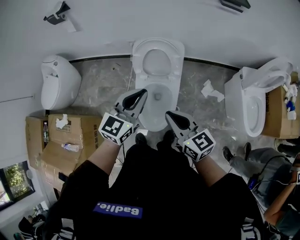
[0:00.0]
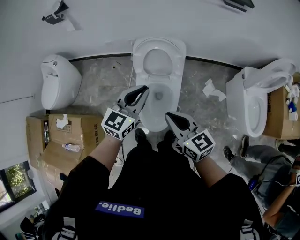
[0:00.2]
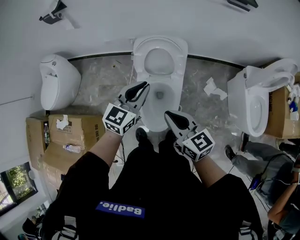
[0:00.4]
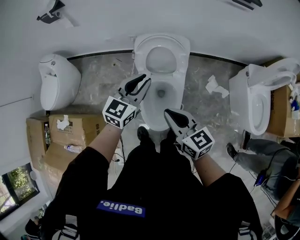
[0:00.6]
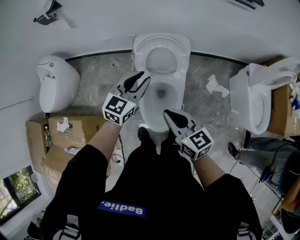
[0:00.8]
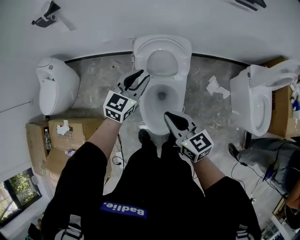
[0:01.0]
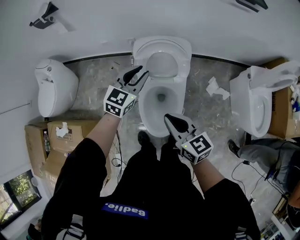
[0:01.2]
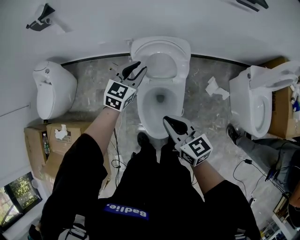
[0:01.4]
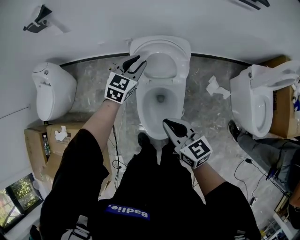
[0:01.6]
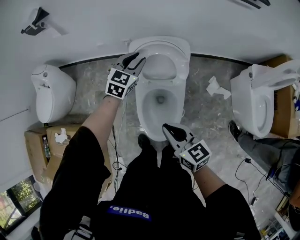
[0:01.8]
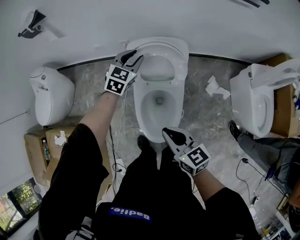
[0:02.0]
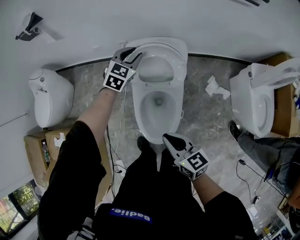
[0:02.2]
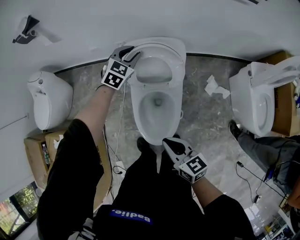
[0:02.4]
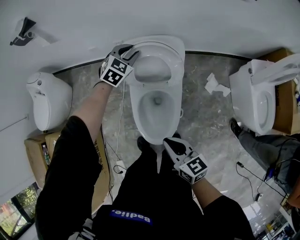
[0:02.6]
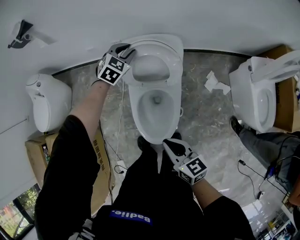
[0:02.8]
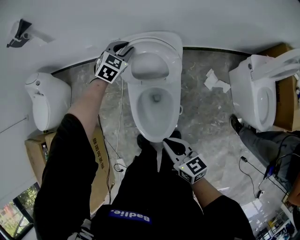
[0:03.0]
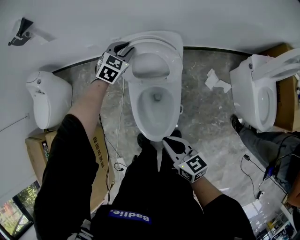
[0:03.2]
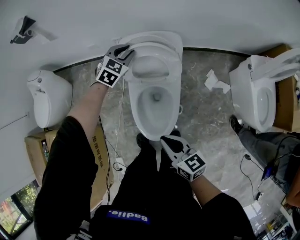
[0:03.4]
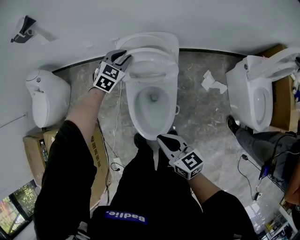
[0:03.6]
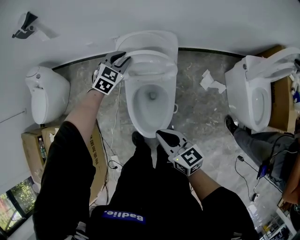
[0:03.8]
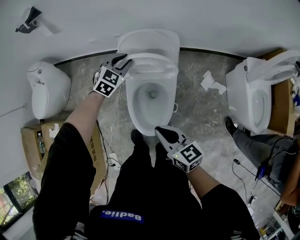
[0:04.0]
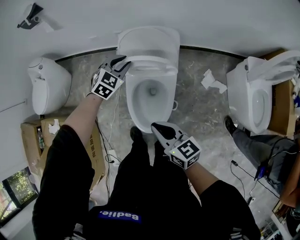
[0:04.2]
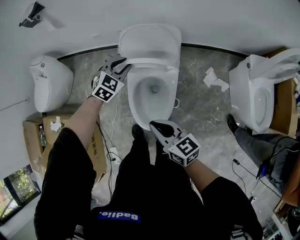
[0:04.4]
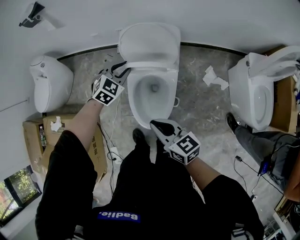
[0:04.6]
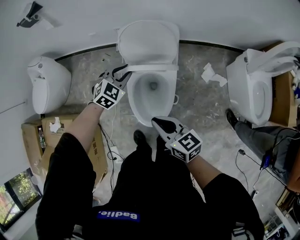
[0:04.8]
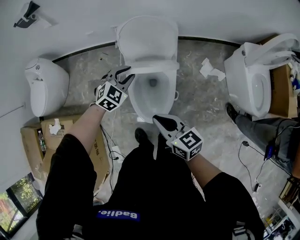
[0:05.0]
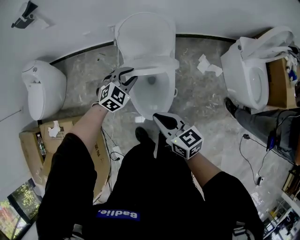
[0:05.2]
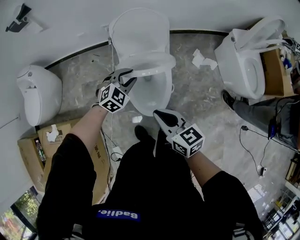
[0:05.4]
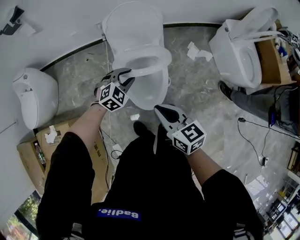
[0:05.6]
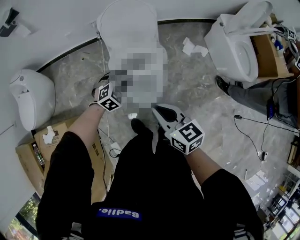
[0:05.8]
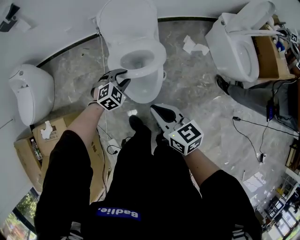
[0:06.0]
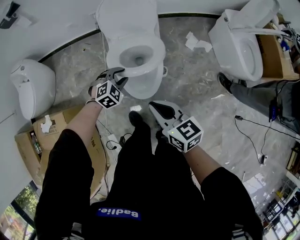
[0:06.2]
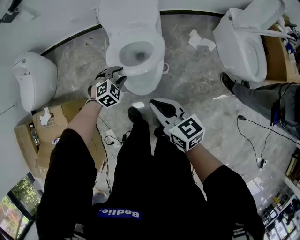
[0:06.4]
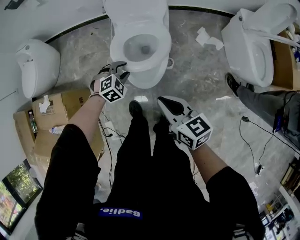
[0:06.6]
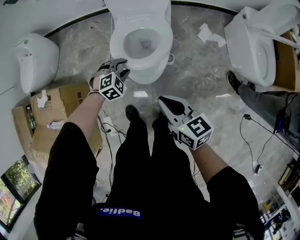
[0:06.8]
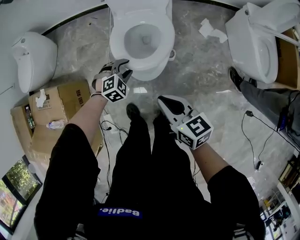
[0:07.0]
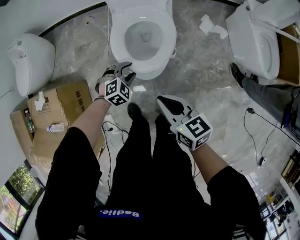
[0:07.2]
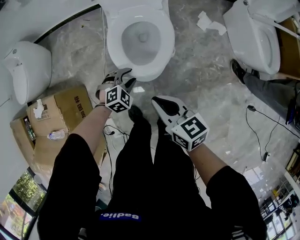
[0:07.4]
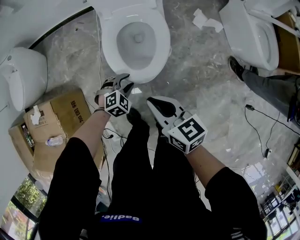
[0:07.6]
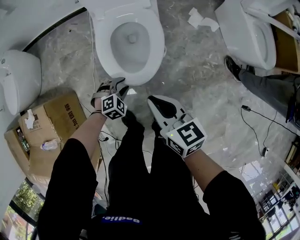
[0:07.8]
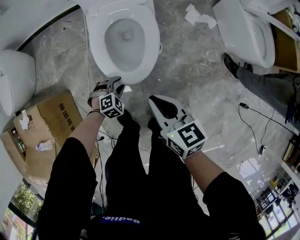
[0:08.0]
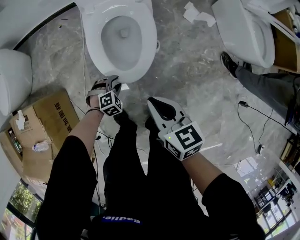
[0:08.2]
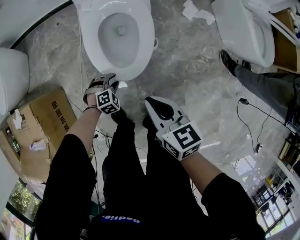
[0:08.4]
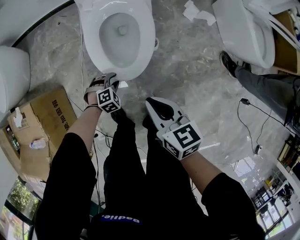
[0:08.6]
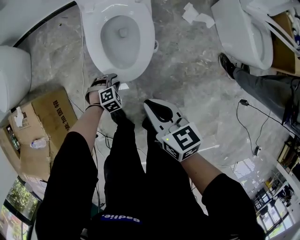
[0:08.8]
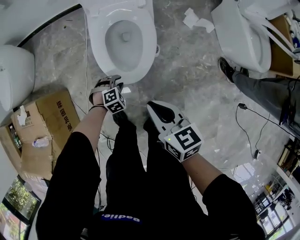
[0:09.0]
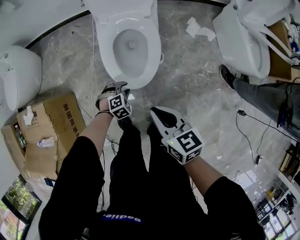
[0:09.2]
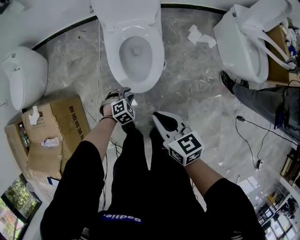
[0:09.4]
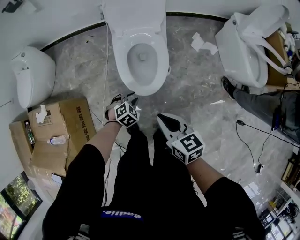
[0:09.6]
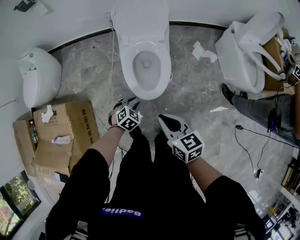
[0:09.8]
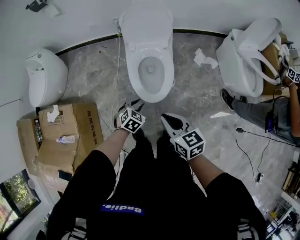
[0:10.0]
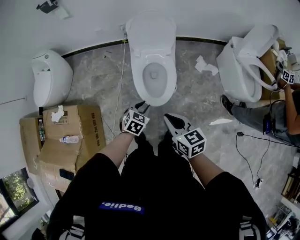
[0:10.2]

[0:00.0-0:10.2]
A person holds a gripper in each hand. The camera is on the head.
0:00.0 to 0:01.4: The right gripper moves forward, downward and to the left, about 10 cm; the left gripper moves forward and downward, about 25 cm.
0:01.4 to 0:03.0: The right gripper goes approximately 10 cm downward and backward, while the left gripper goes approximately 15 cm forward and downward, and rotates about 20 degrees.
0:03.0 to 0:04.4: The left gripper is displaced backward by approximately 15 cm.
0:04.4 to 0:05.8: The right gripper is displaced backward by roughly 10 cm, and swivels some 20 degrees; the left gripper travels backward and downward by roughly 20 cm, and changes its angle by about 20 degrees.
0:05.8 to 0:07.2: The two grippers go roughly 15 cm downward and backward.
0:07.2 to 0:08.8: The left gripper goes about 20 cm downward; the right gripper travels downward by roughly 5 cm.
0:08.8 to 0:10.2: The left gripper travels upward by about 35 cm, and rotates around the line of its fingers by about 40 degrees, counterclockwise from behind. The right gripper travels upward by approximately 20 cm.

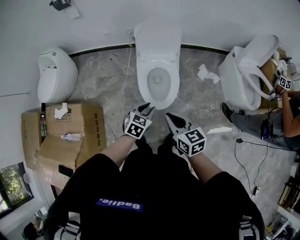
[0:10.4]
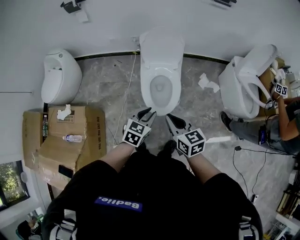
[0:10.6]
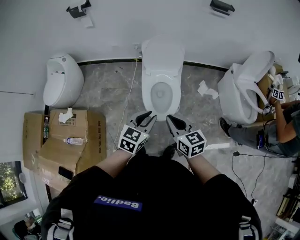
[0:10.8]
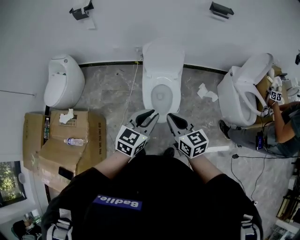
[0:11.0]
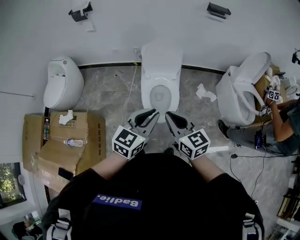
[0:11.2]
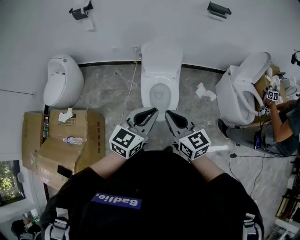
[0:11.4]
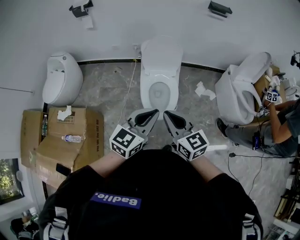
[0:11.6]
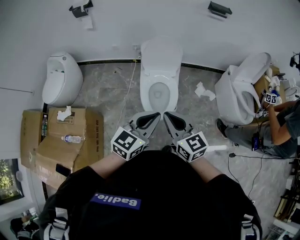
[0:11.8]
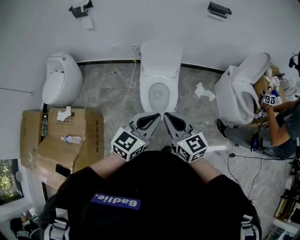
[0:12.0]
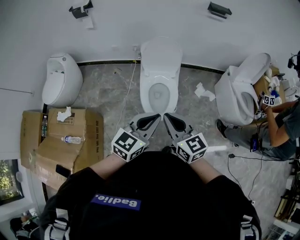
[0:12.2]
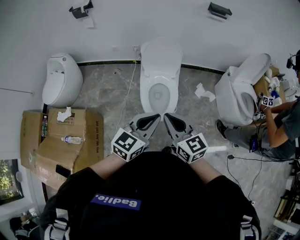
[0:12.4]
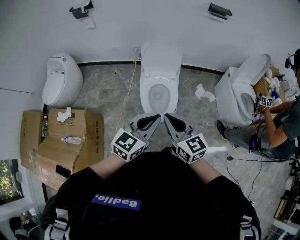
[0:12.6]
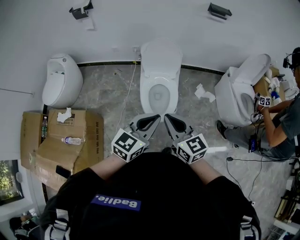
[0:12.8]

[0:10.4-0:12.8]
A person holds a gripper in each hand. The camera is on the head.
0:10.4 to 0:11.6: The left gripper is displaced upward by some 25 cm, angles its fingers upward, by some 30 degrees, and closes its fingers, while the right gripper is displaced upward by about 15 cm.
0:11.6 to 0:12.8: The grippers make only small movements.

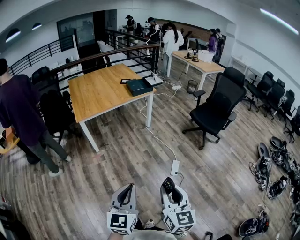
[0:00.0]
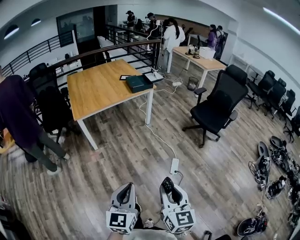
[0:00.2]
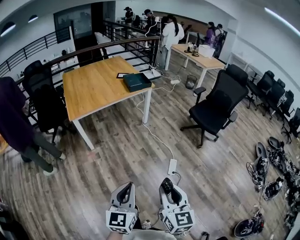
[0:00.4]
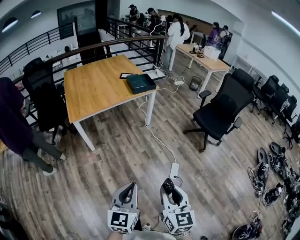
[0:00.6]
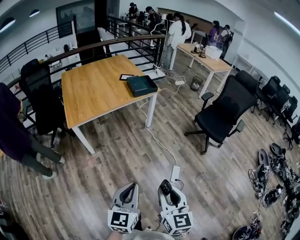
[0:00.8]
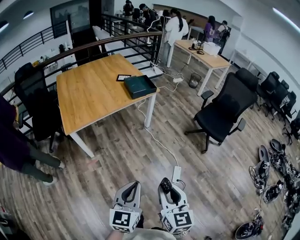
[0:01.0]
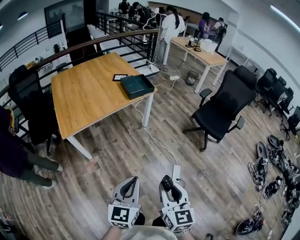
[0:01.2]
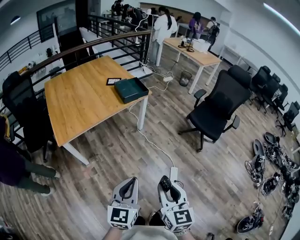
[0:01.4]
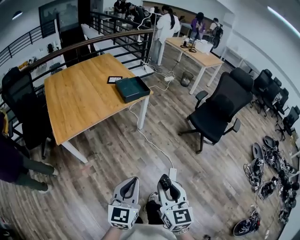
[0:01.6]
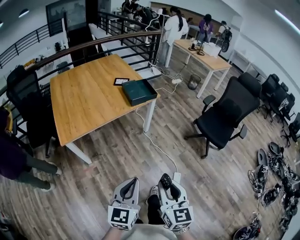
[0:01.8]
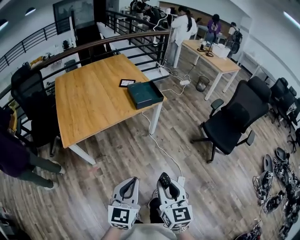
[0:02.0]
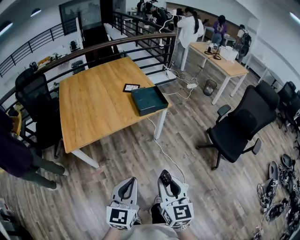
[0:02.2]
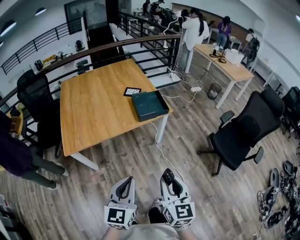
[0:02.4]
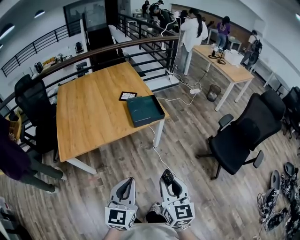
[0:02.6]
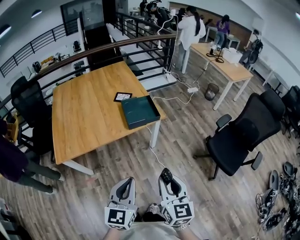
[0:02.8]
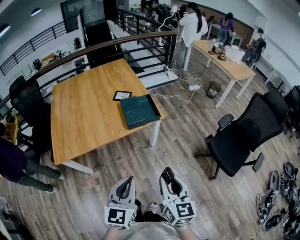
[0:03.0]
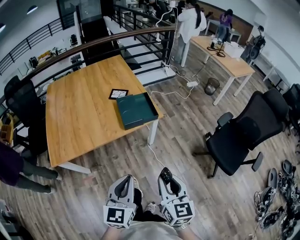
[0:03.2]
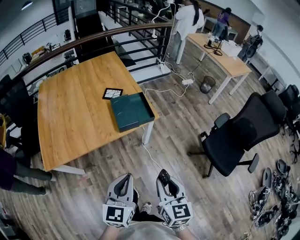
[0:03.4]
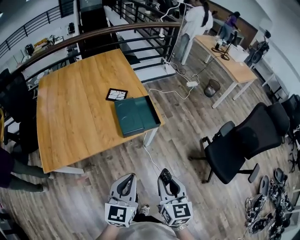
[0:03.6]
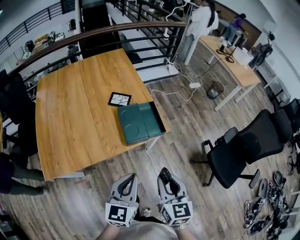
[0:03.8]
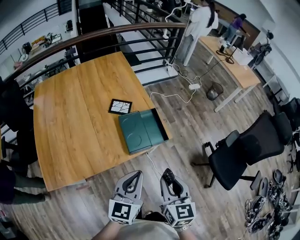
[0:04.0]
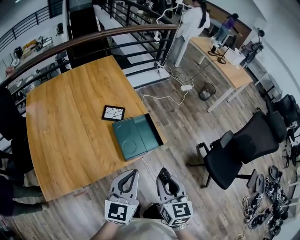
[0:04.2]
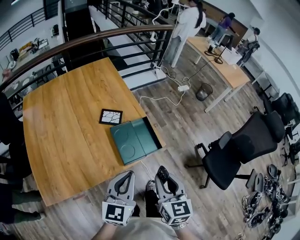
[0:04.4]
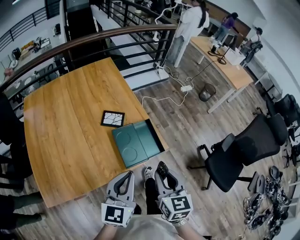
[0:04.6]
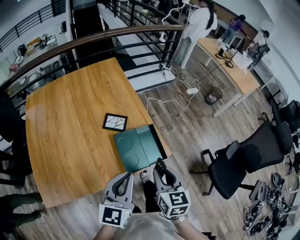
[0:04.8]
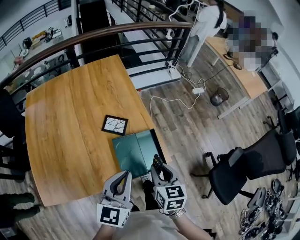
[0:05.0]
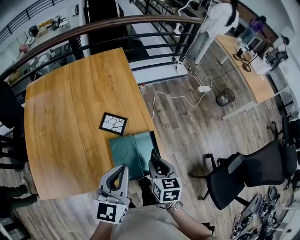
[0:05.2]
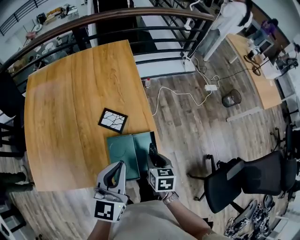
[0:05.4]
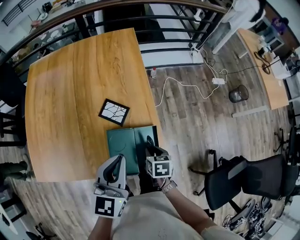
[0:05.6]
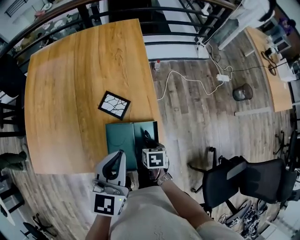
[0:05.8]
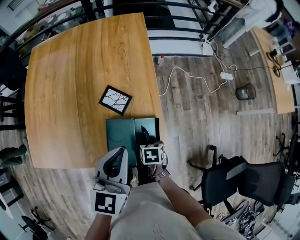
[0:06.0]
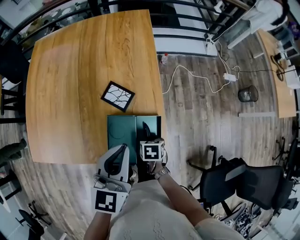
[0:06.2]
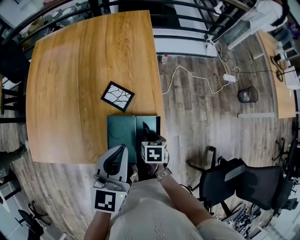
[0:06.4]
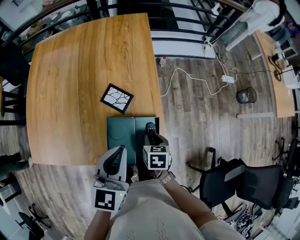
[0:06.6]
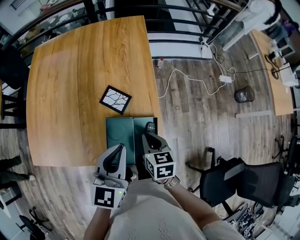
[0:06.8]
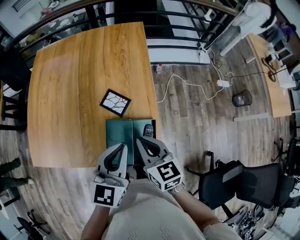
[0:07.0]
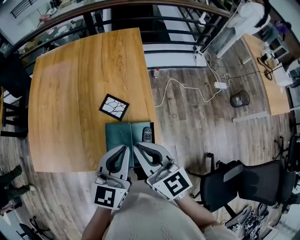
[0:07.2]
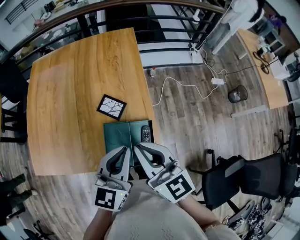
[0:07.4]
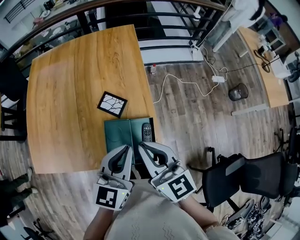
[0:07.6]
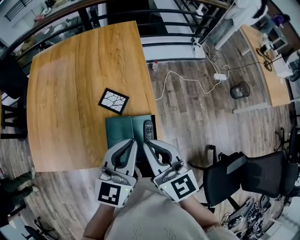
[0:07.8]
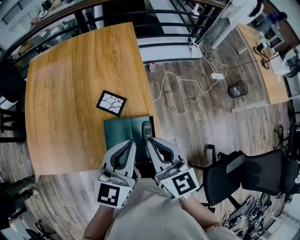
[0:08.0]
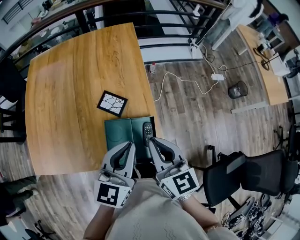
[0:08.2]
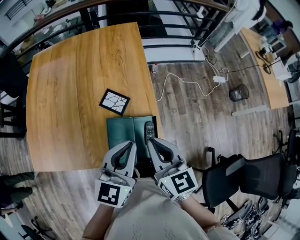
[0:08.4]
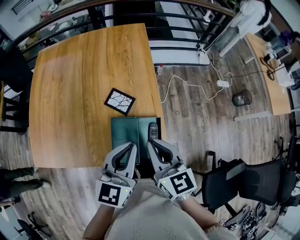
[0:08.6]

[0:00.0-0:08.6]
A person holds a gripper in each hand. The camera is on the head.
0:00.0 to 0:01.4: Both grippers move forward, some 35 cm.
0:01.4 to 0:02.8: Both grippers move forward, approximately 35 cm.
0:02.8 to 0:04.4: The two grippers go about 40 cm forward.
0:04.4 to 0:05.8: The left gripper ends up about 25 cm from where it was, and changes its angle by about 20 degrees; the right gripper moves downward, roughly 30 cm, and tips its fingers downward by roughly 40 degrees.
0:05.8 to 0:07.2: The right gripper shifts about 30 cm upward, tilts its fingers about 60 degrees upward, and closes its fingers.
0:07.2 to 0:08.6: The grippers stay close to where they were, moving slightly.

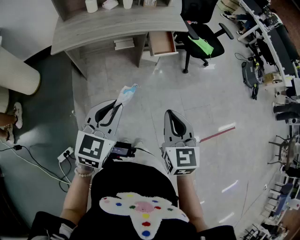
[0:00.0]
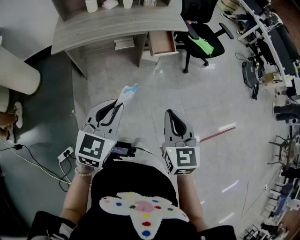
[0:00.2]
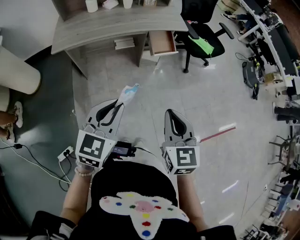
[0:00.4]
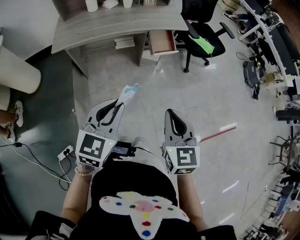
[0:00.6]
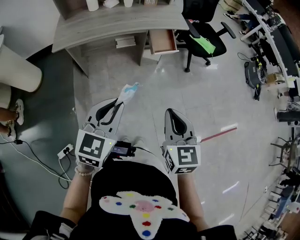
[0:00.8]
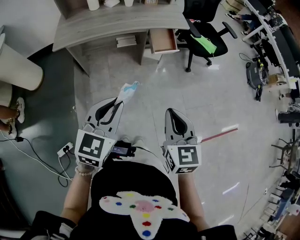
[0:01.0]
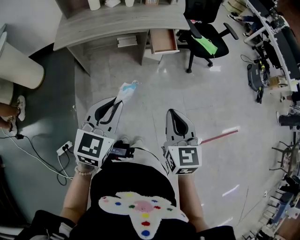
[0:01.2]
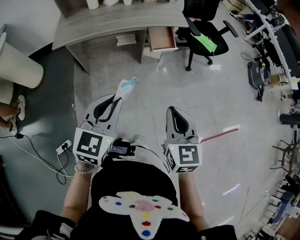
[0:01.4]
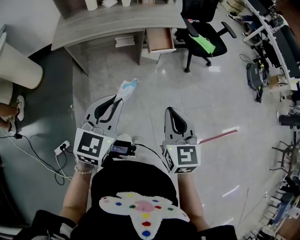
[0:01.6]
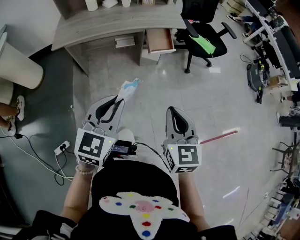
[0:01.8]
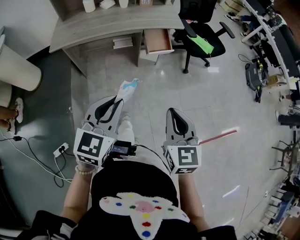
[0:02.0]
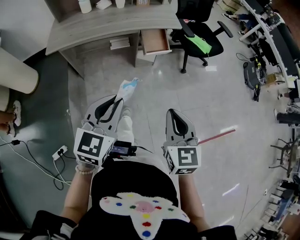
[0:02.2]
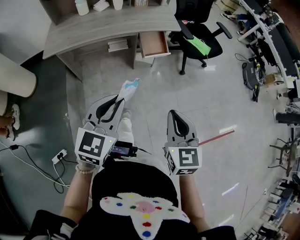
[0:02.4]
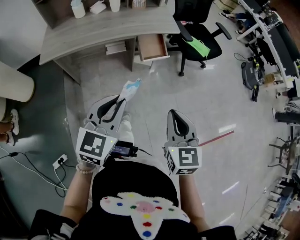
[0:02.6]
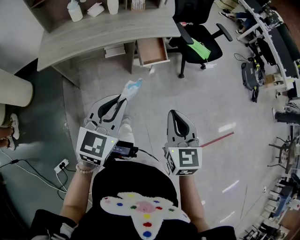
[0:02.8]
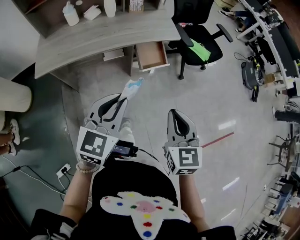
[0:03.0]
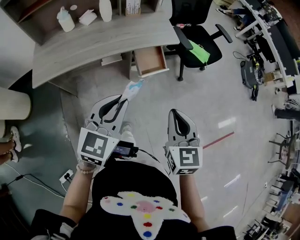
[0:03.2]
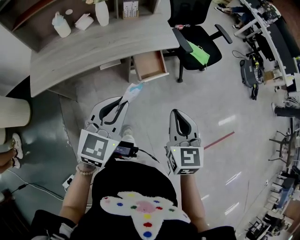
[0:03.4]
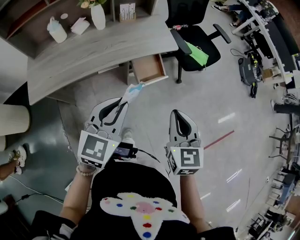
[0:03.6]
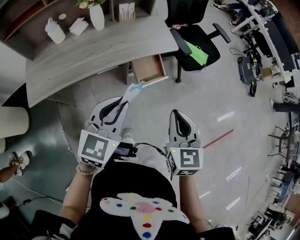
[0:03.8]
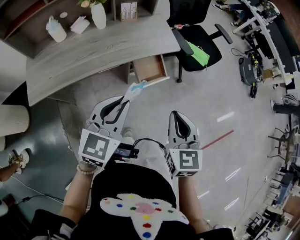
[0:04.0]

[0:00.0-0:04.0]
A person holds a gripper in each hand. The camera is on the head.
0:00.0 to 0:01.4: The two grippers go approximately 5 cm to the right.
0:01.4 to 0:02.6: The two grippers go approximately 5 cm forward.
0:02.6 to 0:04.0: Both grippers travel together forward, approximately 20 cm.
